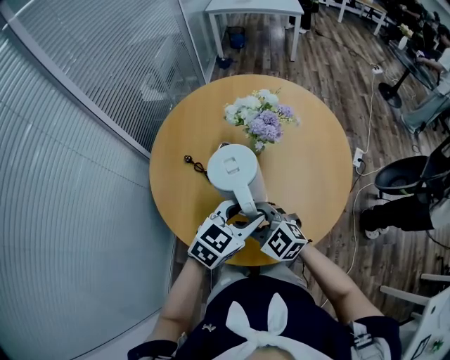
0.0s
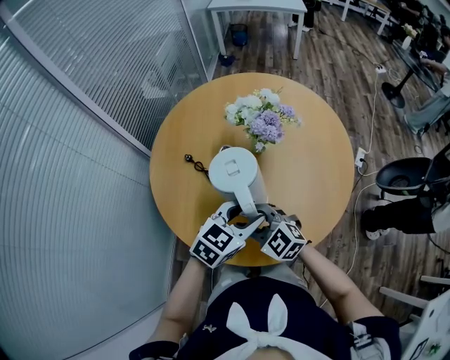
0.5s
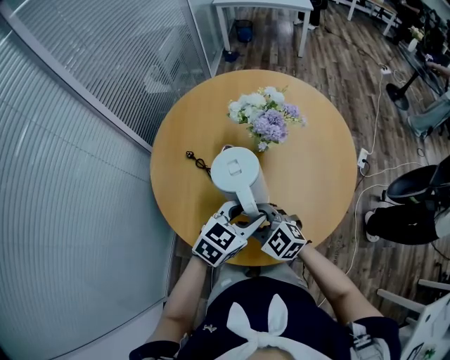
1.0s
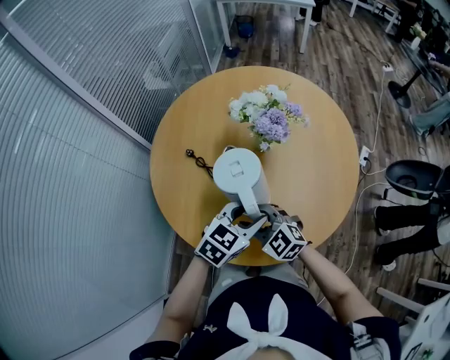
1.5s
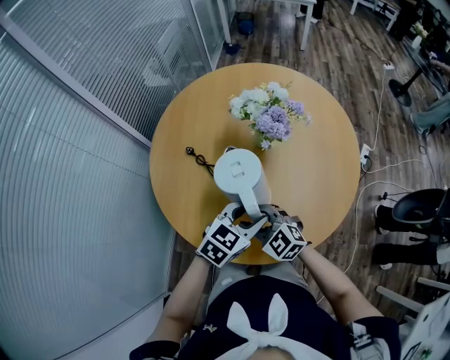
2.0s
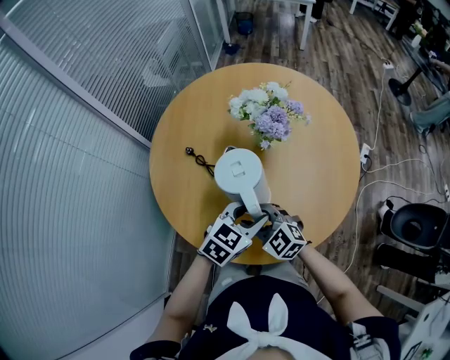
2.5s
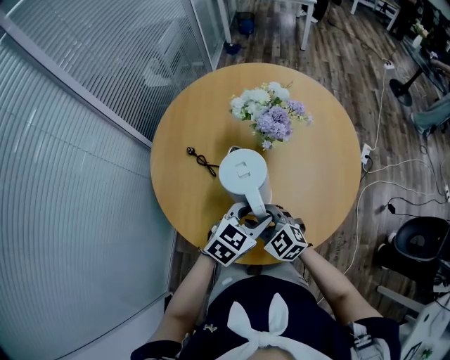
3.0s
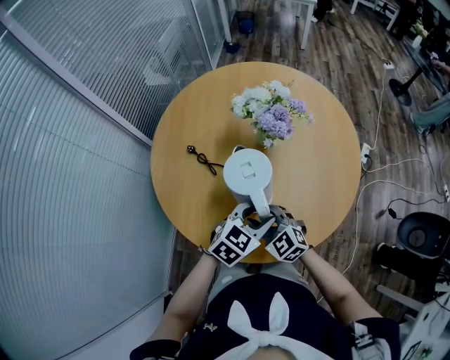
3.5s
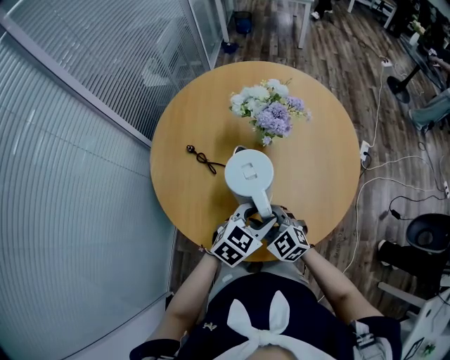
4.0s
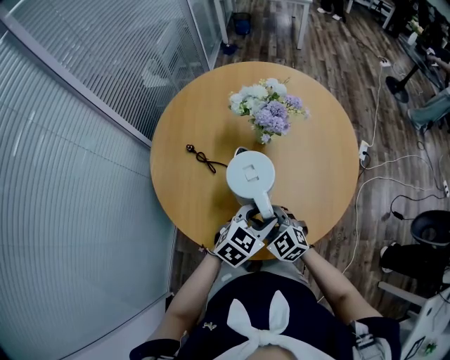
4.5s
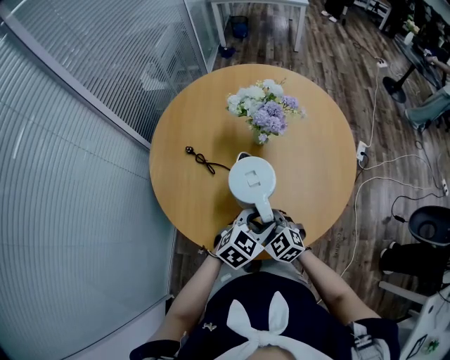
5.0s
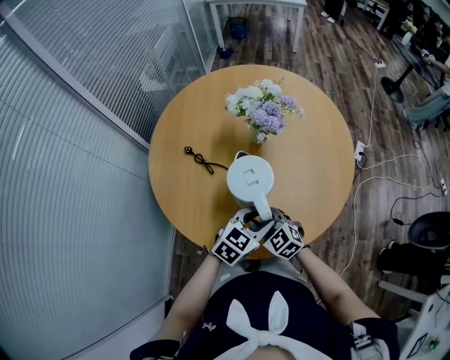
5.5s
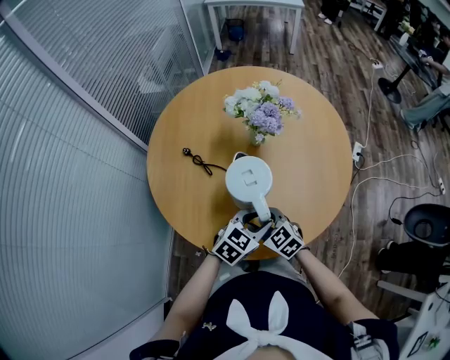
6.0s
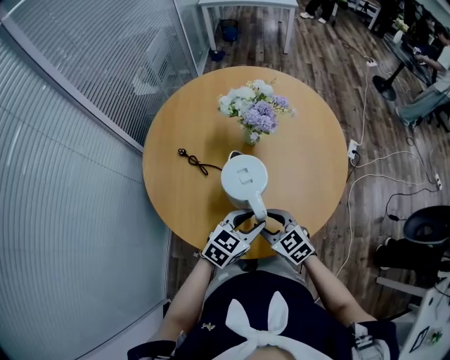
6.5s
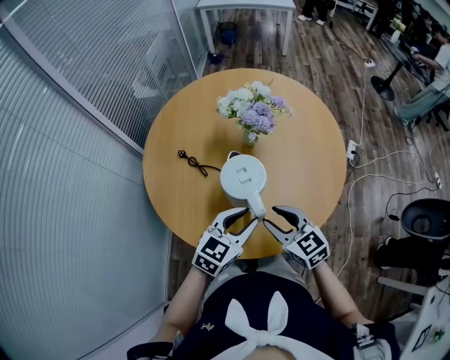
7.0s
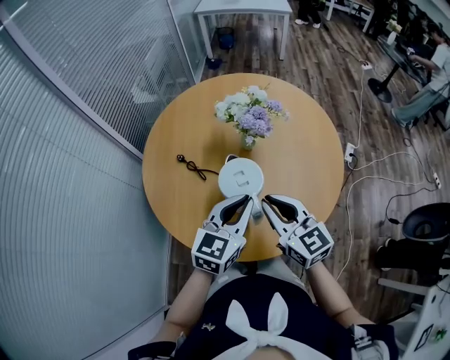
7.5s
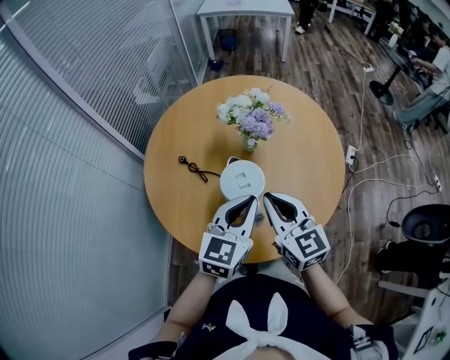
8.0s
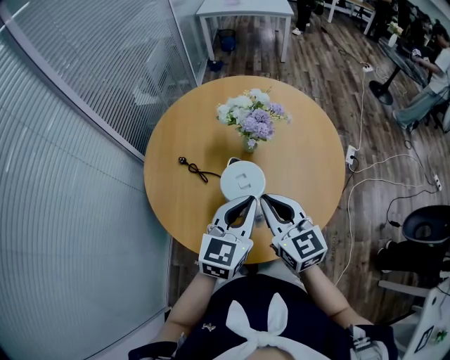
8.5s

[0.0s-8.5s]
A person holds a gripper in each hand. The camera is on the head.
0.0s to 2.0s: Both grippers travel together downward, roughly 5 cm.
2.0s to 4.0s: The grippers move only a little.
4.0s to 6.5s: The right gripper changes place by roughly 5 cm.
6.5s to 8.5s: Both grippers travel together upward, some 15 cm. The left gripper rotates some 30 degrees, and closes its fingers, while the right gripper changes its angle by roughly 30 degrees, and closes its fingers.

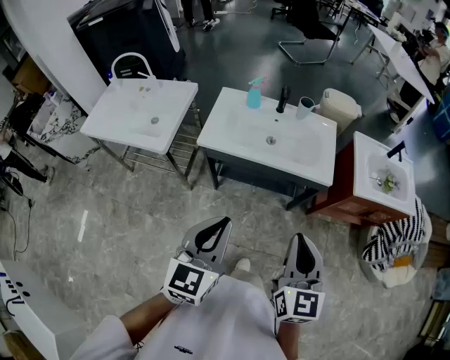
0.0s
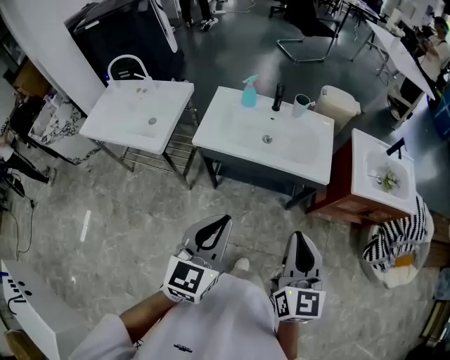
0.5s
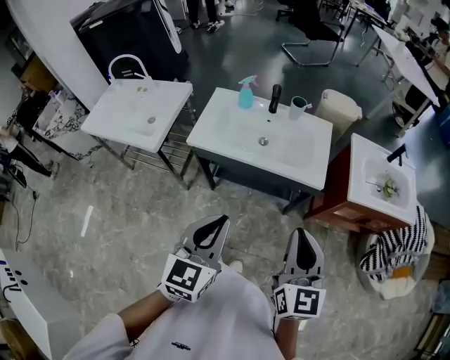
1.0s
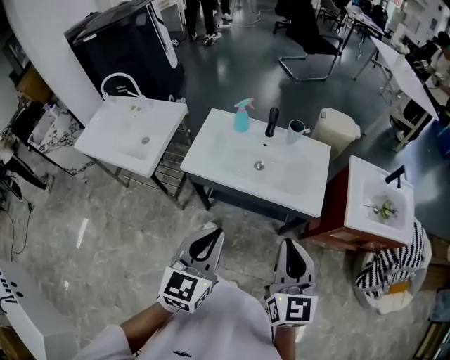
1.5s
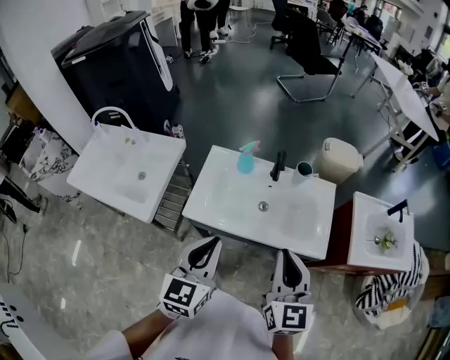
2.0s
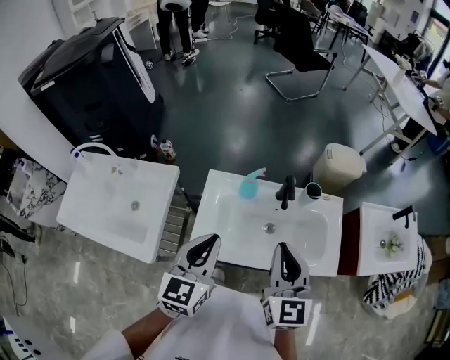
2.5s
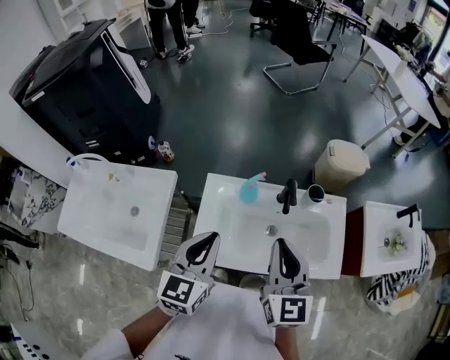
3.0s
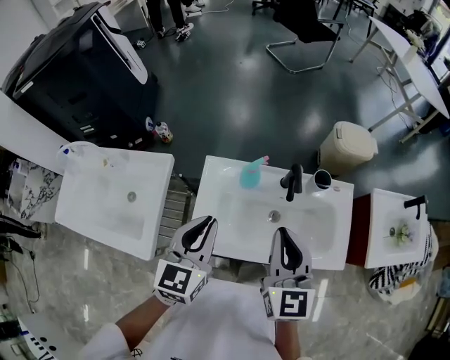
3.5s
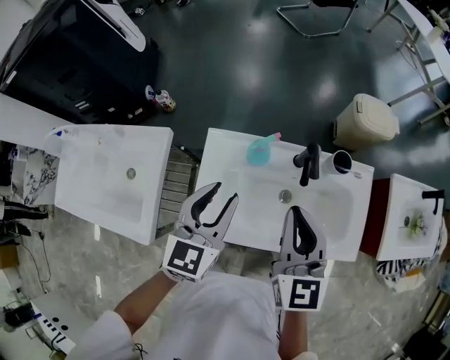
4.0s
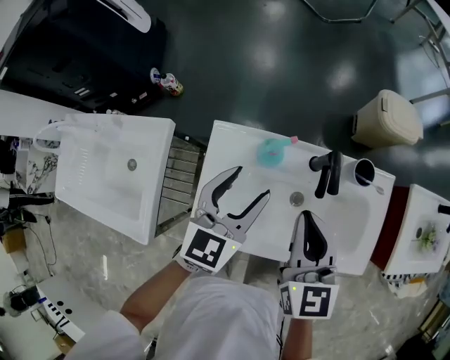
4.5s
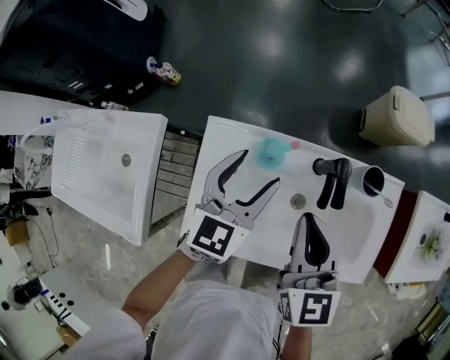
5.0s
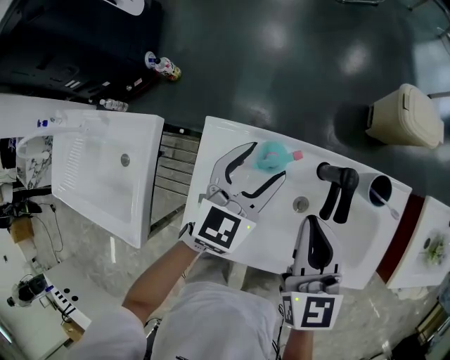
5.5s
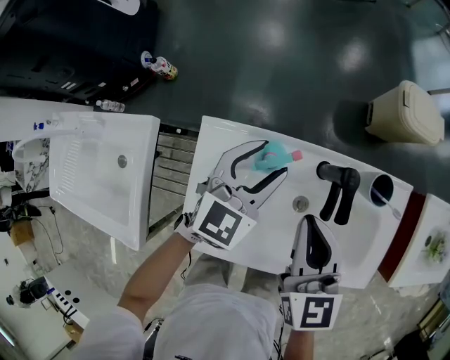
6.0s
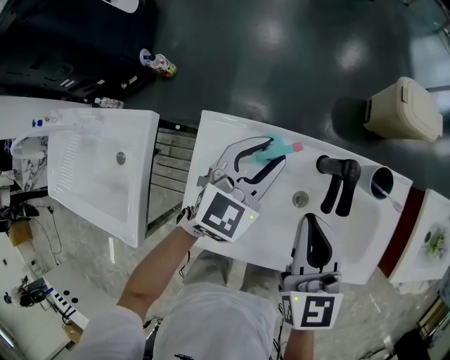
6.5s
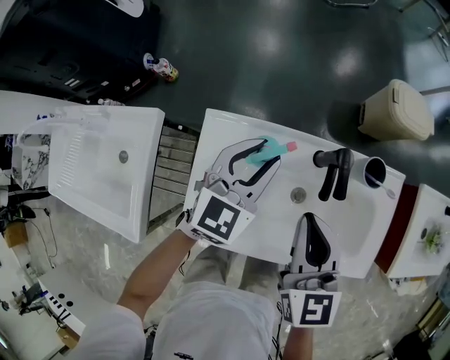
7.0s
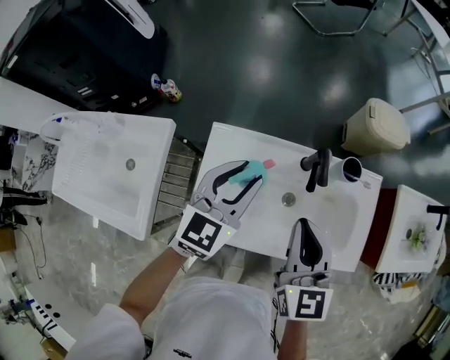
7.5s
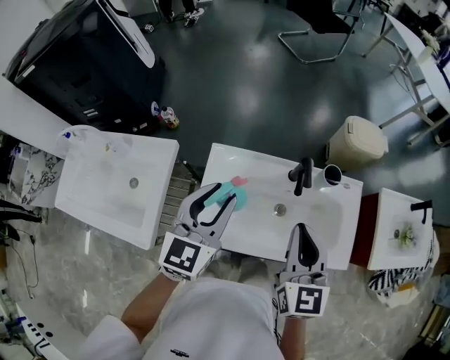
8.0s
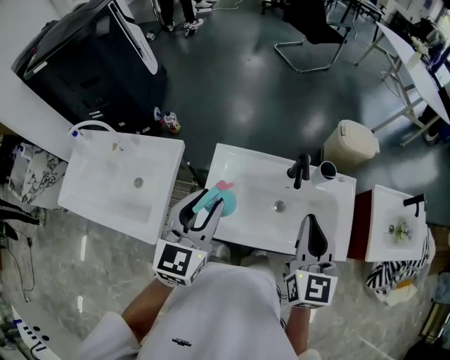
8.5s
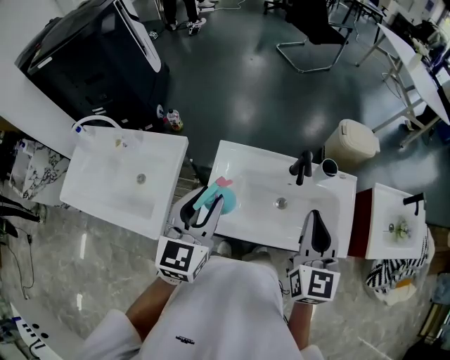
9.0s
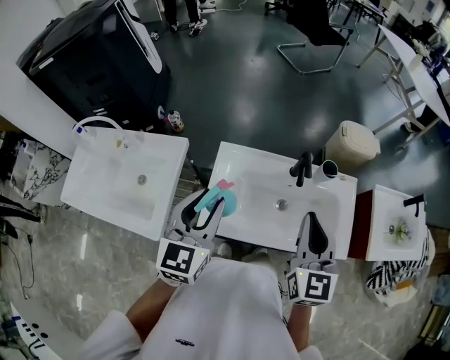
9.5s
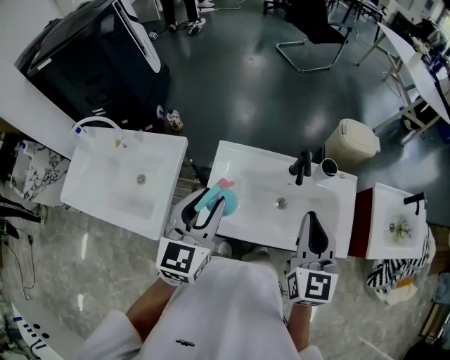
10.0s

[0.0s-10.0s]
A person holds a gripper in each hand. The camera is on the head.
0.0s to 2.0s: Both grippers travel together forward, about 25 cm.
2.0s to 4.0s: The right gripper shifts about 30 cm forward and to the left. The left gripper moves forward, roughly 30 cm, and opens up.
4.0s to 6.0s: The right gripper shifts approximately 15 cm downward and forward. The left gripper travels forward and downward by roughly 20 cm, and opens up.
6.0s to 8.0s: Both grippers travel together upward and backward, about 25 cm.
8.0s to 10.0s: The left gripper travels backward by some 10 cm; the right gripper shifts by roughly 5 cm.

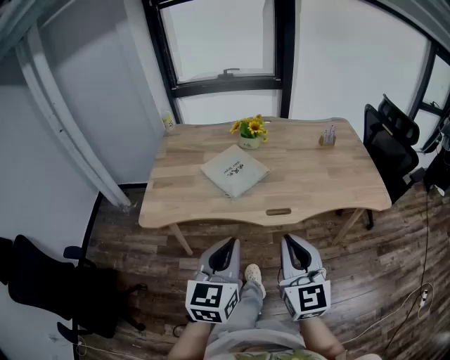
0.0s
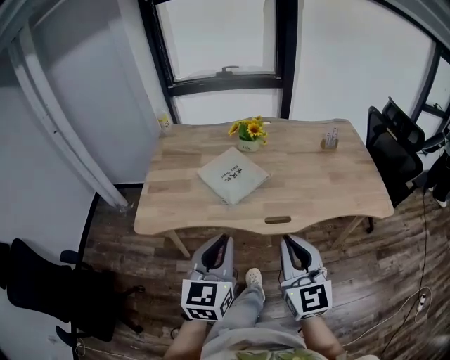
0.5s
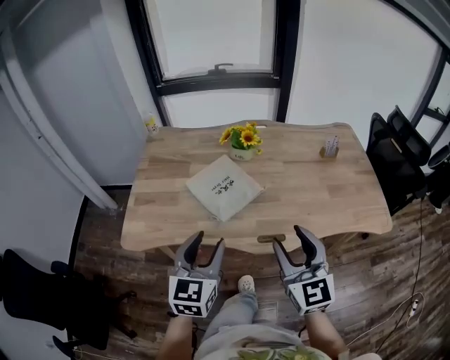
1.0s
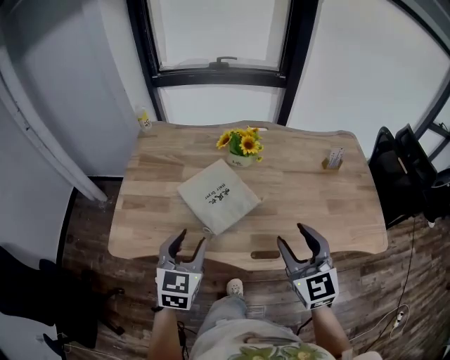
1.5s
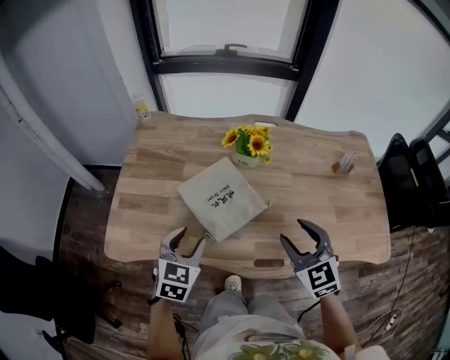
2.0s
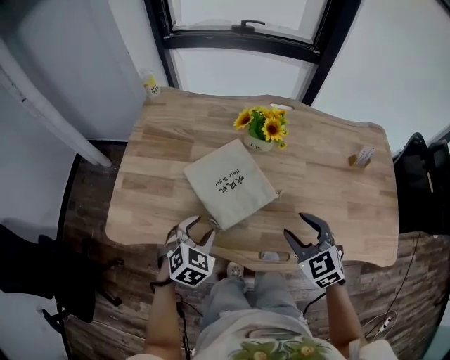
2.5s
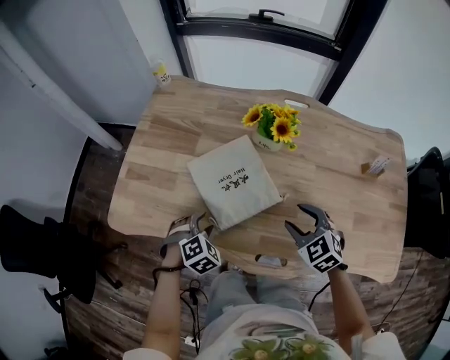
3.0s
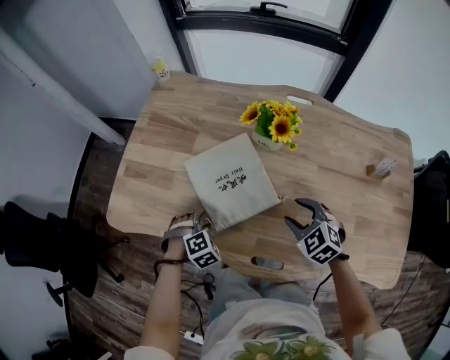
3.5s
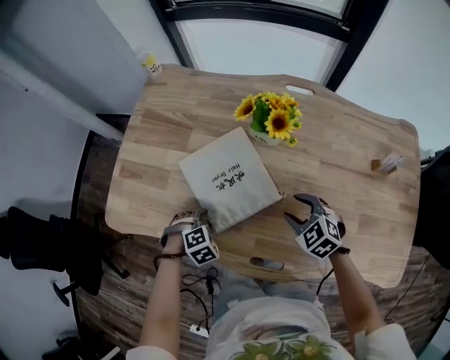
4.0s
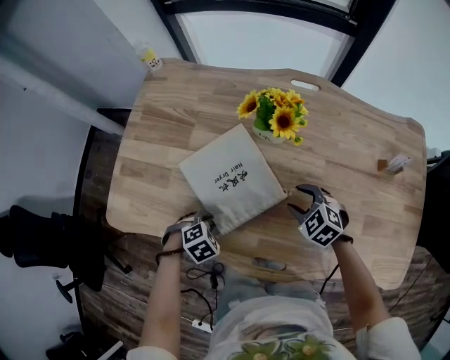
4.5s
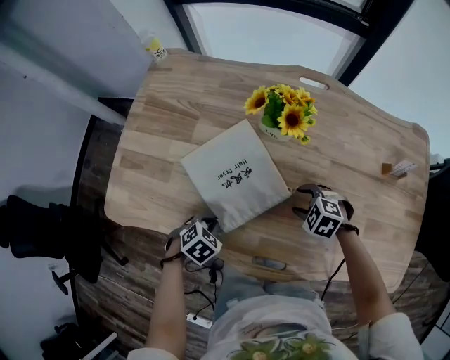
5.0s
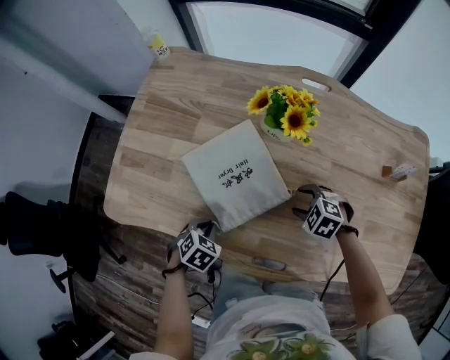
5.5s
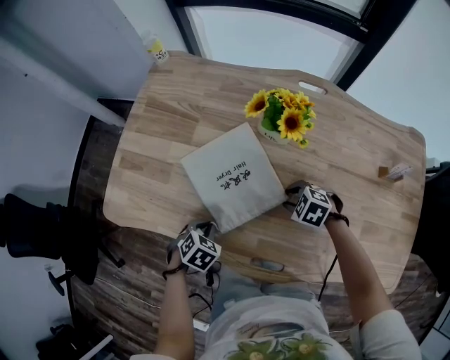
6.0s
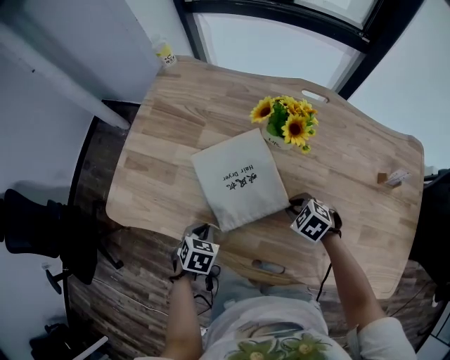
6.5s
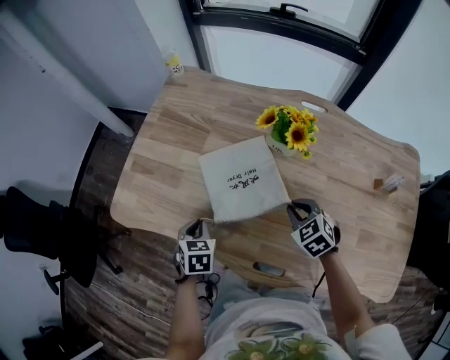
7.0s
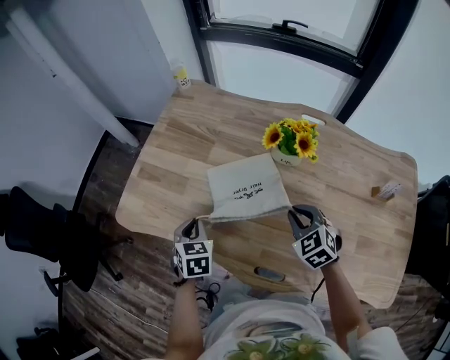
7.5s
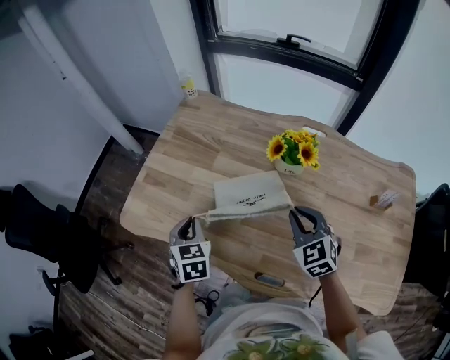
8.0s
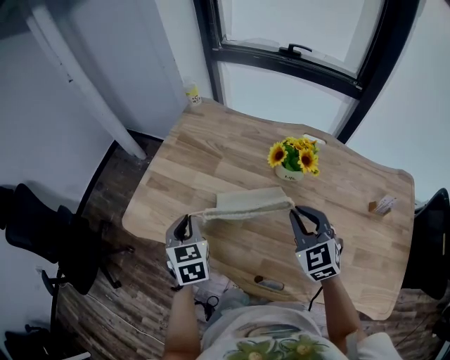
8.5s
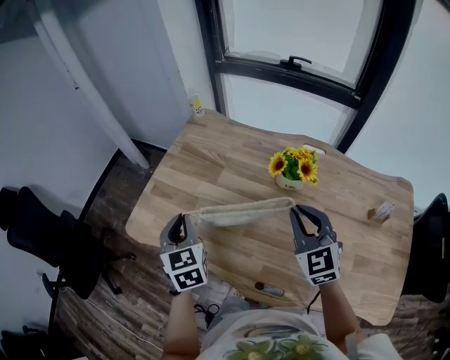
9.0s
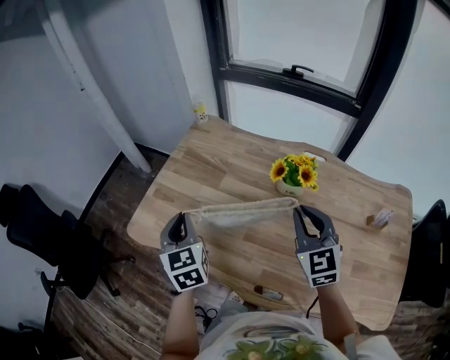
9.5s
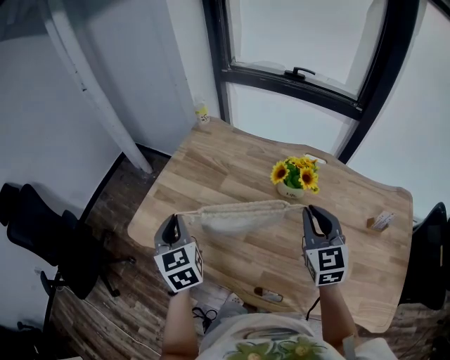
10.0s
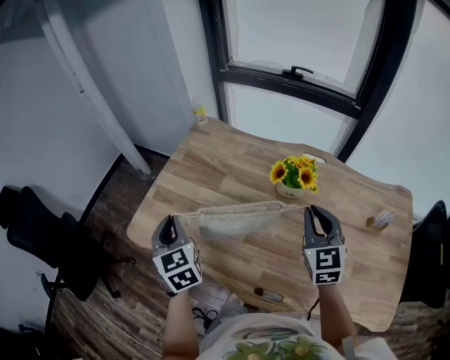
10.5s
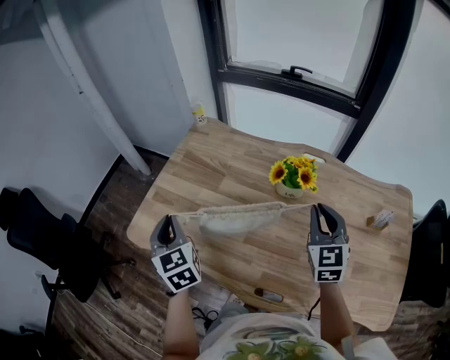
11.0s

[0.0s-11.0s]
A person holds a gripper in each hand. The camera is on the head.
0.0s to 2.0s: The left gripper shifts roughly 35 cm forward and downward, rotates roughly 30 degrees, and opens up, while the right gripper is displaced forward by roughly 35 cm, swivels roughly 30 degrees, and opens its fingers.
2.0s to 3.5s: The grippers both shift downward by roughly 20 cm. The right gripper rotates about 30 degrees, while the left gripper tips its fingers downward by some 30 degrees.
3.5s to 5.5s: The right gripper heads downward, covering roughly 10 cm, and swivels about 30 degrees. Meanwhile the left gripper turns by about 40 degrees, and closes its fingers.
5.5s to 7.5s: The right gripper is displaced upward by roughly 15 cm, rotates some 30 degrees, and closes its fingers. Meanwhile the left gripper travels upward and forward by about 15 cm, and rotates about 50 degrees.
7.5s to 9.0s: Both grippers move upward, roughly 15 cm. The right gripper changes its angle by about 30 degrees. Meanwhile the left gripper swivels some 30 degrees.
9.0s to 11.0s: The right gripper heads to the right, covering some 5 cm.
